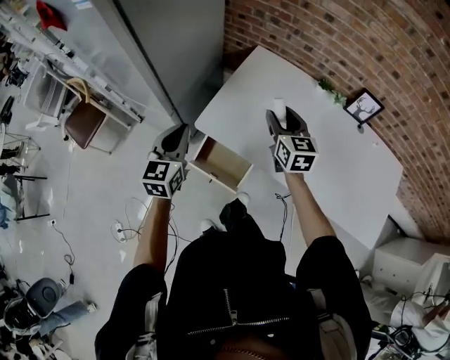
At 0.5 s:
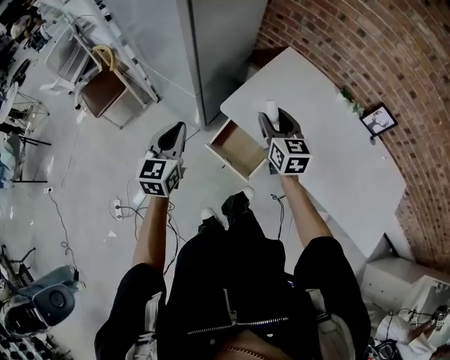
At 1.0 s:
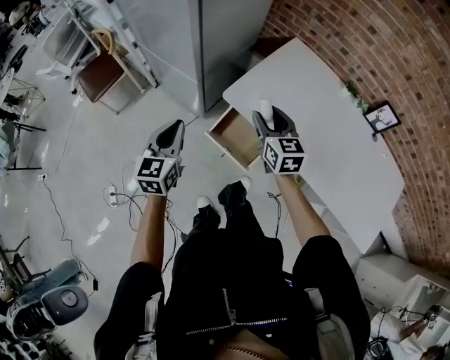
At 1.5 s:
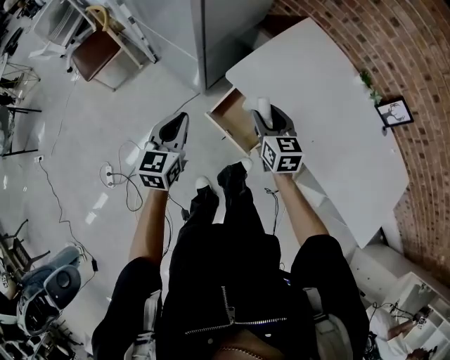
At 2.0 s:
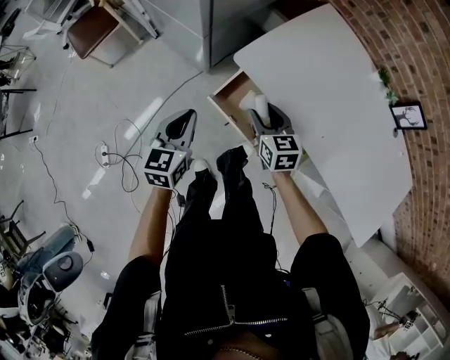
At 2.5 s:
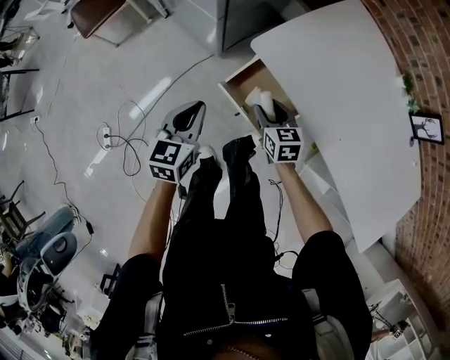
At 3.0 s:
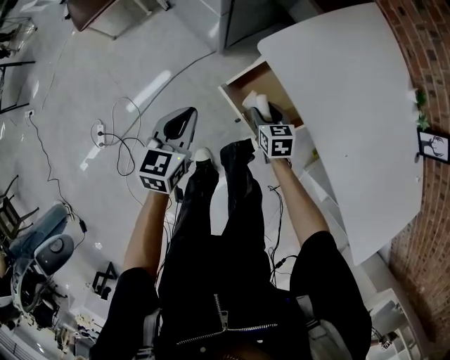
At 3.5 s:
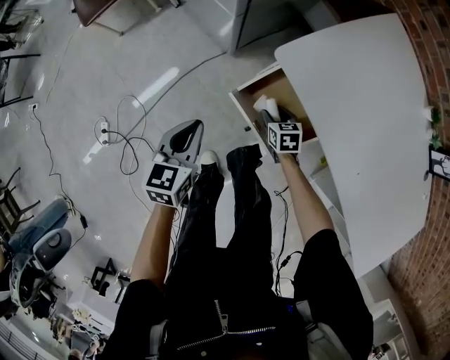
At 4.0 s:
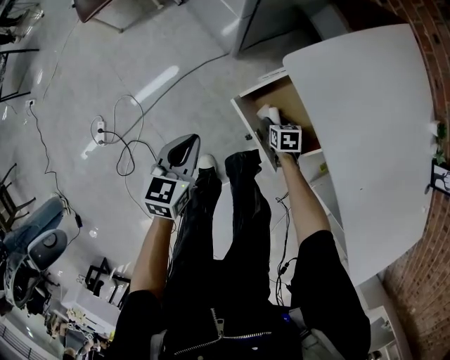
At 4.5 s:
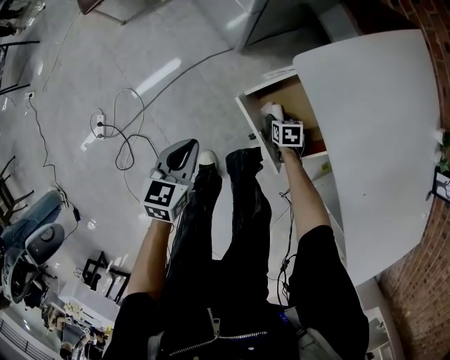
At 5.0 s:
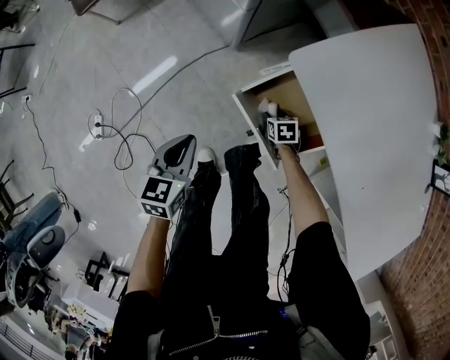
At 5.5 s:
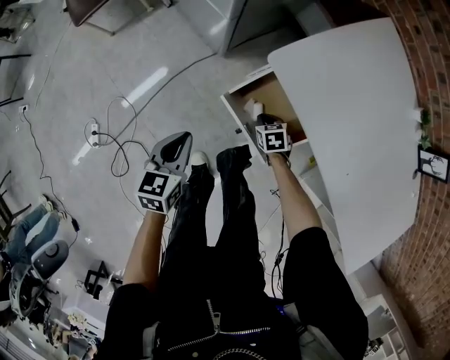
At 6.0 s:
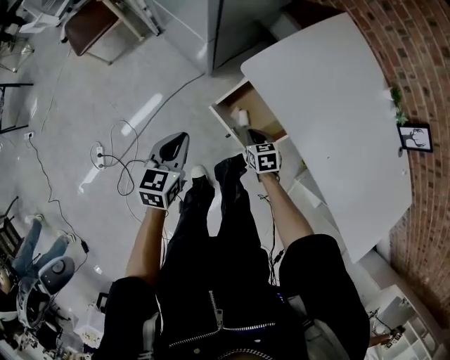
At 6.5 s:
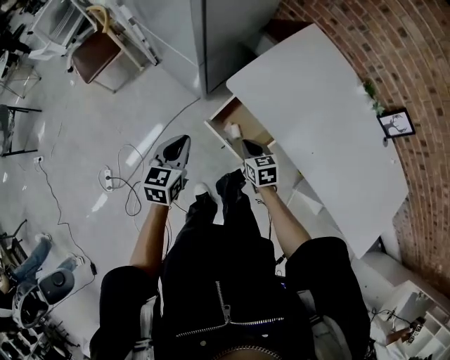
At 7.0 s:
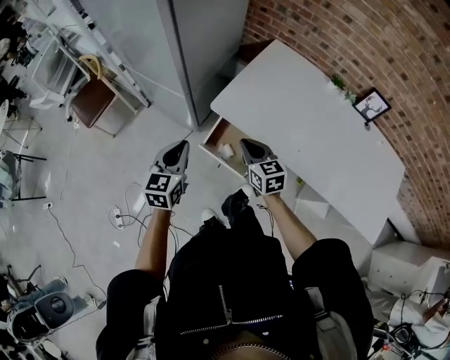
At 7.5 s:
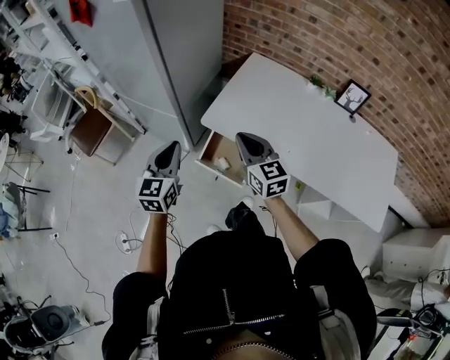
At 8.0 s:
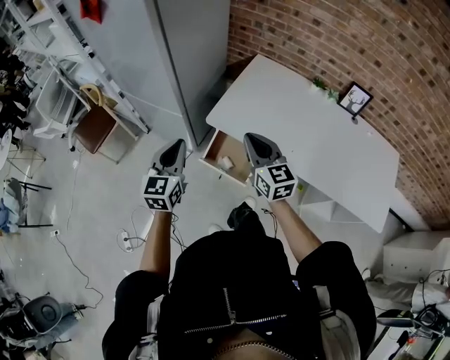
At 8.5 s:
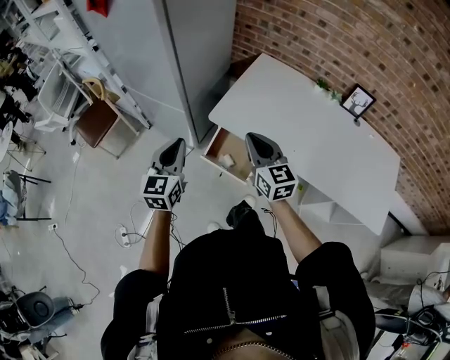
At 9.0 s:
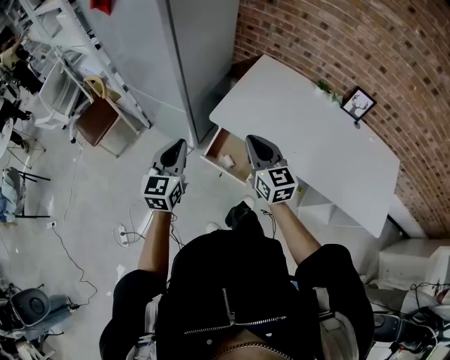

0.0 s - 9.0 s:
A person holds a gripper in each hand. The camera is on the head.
0.0 s - 2.0 s: The right gripper travels downward, to the left and backward by about 30 cm, and turns by about 30 degrees. Meanwhile the left gripper is displaced downward, backward and to the left by some 20 cm.
2.0 s - 4.5 s: The right gripper is displaced downward by about 40 cm, and tilts its fingers approximately 40 degrees downward; the left gripper is displaced downward by approximately 20 cm, and turns by roughly 20 degrees.
4.5 s - 7.0 s: The right gripper is displaced upward by roughly 50 cm, tips its fingers upward by about 40 degrees, and closes up. Meanwhile the left gripper is displaced upward by about 30 cm, and changes its angle by about 30 degrees.
7.0 s - 9.0 s: The right gripper travels upward by about 15 cm, while the left gripper is displaced upward by approximately 10 cm.

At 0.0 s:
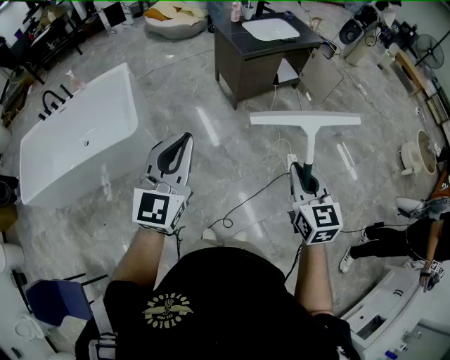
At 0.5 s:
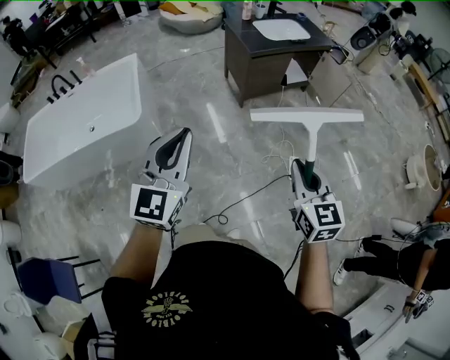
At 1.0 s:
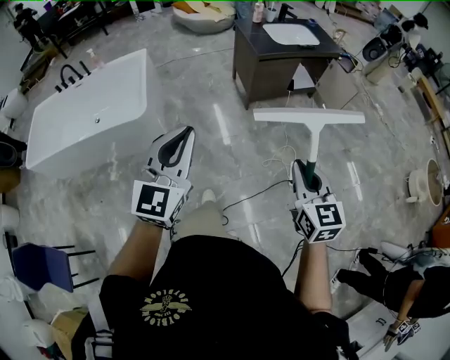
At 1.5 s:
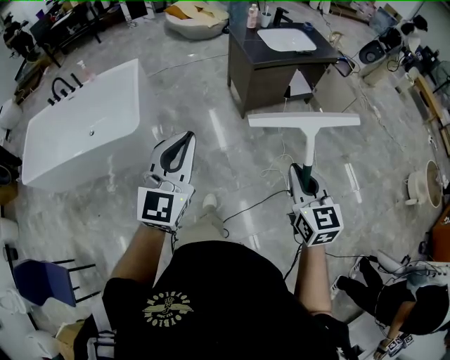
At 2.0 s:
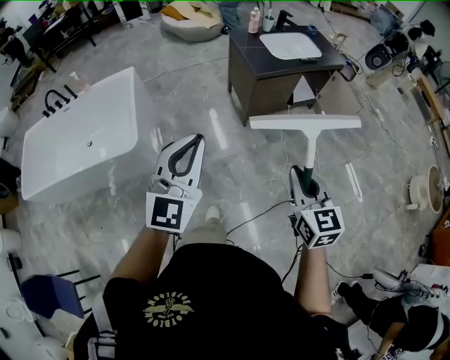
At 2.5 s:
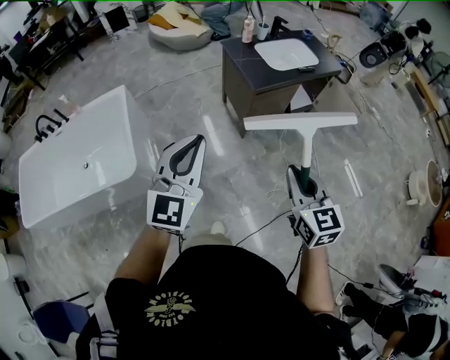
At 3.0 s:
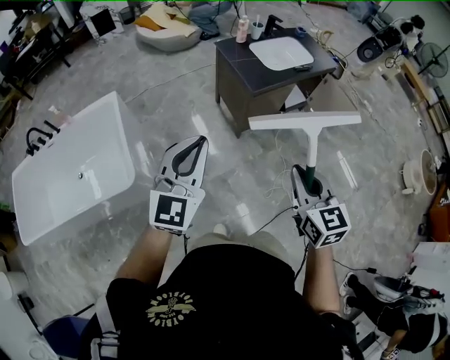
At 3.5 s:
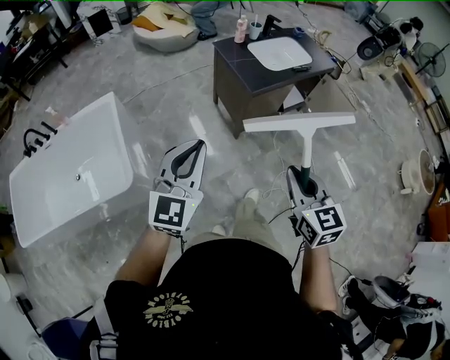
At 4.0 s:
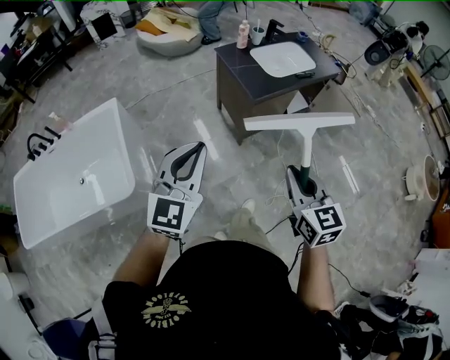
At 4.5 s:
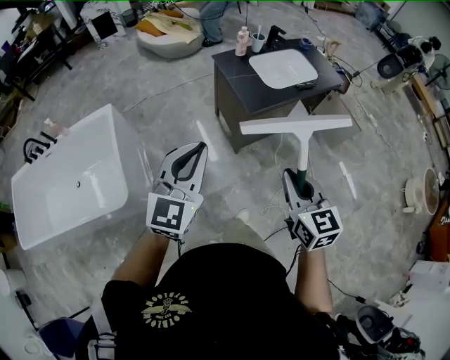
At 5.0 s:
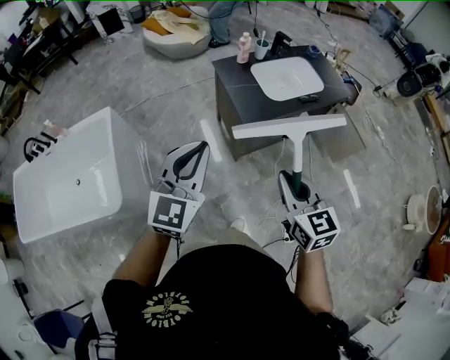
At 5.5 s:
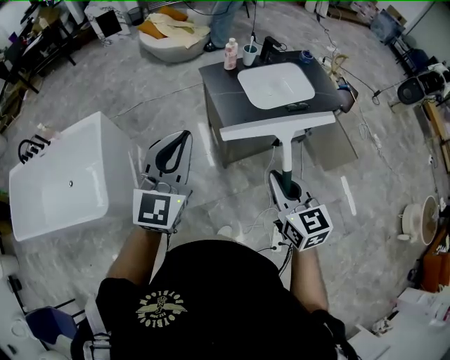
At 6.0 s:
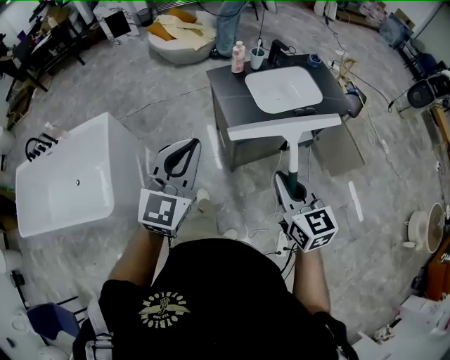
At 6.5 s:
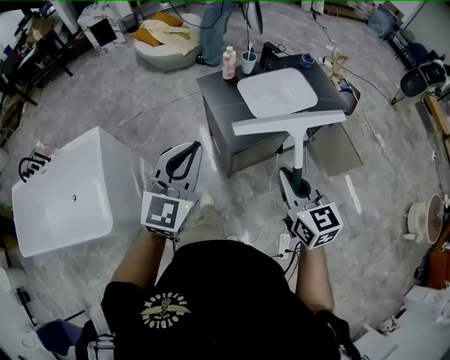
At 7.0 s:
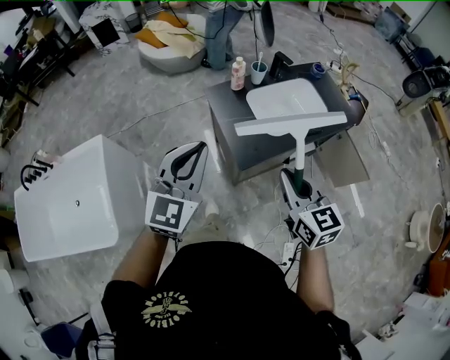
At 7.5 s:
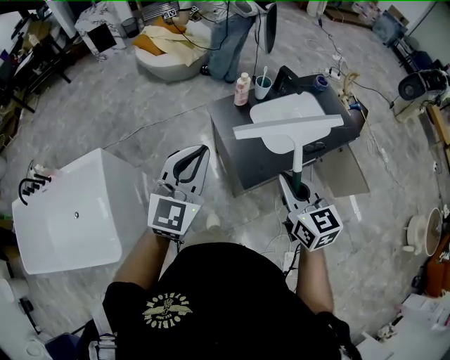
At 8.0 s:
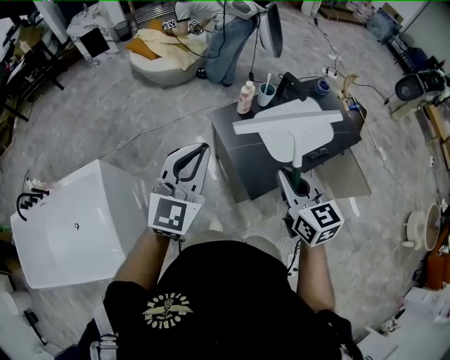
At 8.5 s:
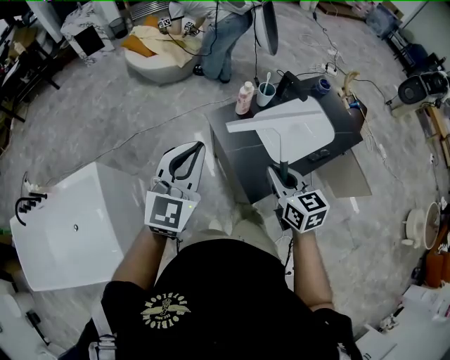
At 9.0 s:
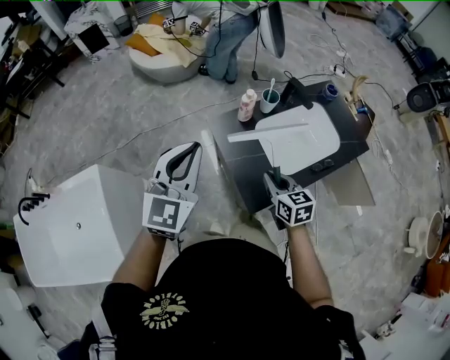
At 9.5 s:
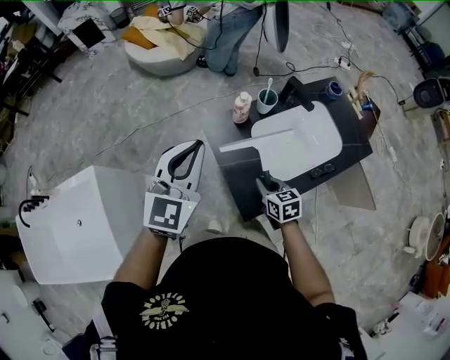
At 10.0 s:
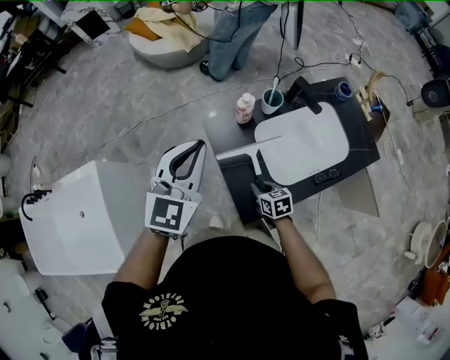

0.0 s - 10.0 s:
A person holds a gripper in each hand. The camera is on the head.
0.0 s - 2.0 s: The grippers both shift forward by roughly 20 cm.
2.0 s - 4.0 s: The left gripper heads forward, covering roughly 20 cm, while the right gripper heads forward and to the left, covering roughly 20 cm.
4.0 s - 6.0 s: The two grippers go about 30 cm forward and to the right.
6.0 s - 8.0 s: Both grippers move forward, approximately 30 cm.
8.0 s - 10.0 s: The right gripper moves downward, some 35 cm, and swivels approximately 40 degrees, while the left gripper heads forward and downward, covering some 20 cm.

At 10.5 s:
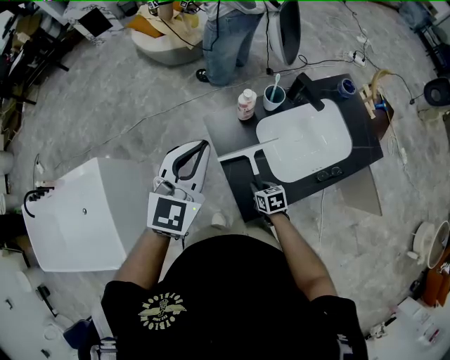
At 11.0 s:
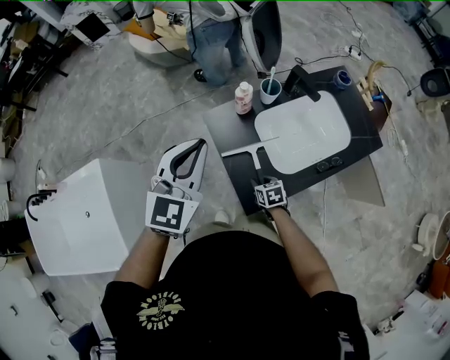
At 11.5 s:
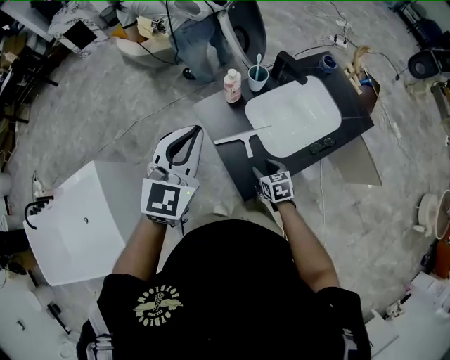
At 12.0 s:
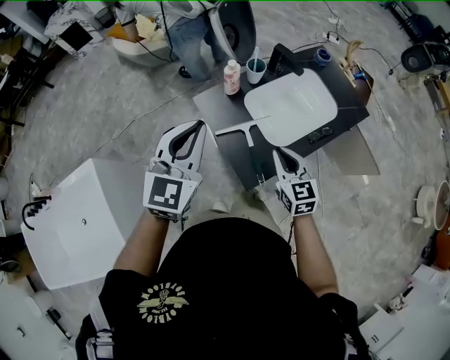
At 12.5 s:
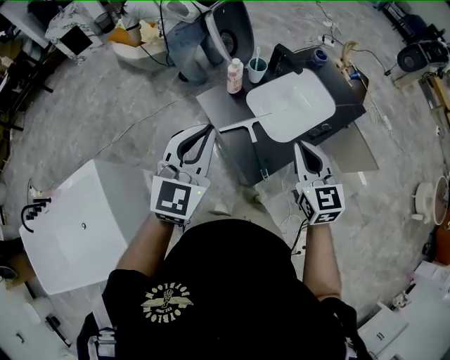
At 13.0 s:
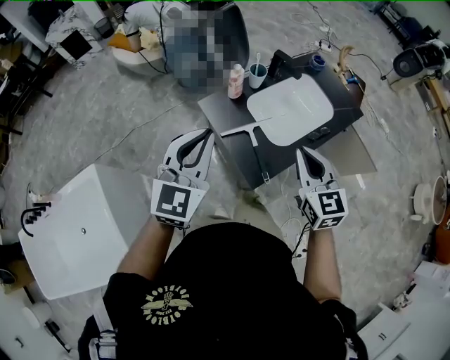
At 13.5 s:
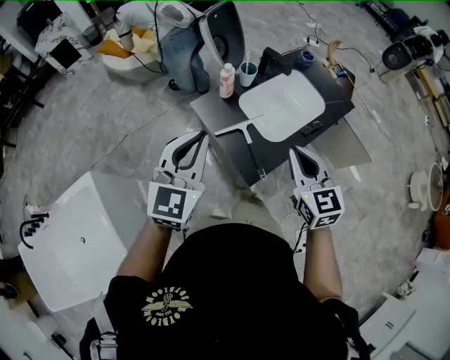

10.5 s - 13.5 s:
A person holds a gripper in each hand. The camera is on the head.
10.5 s - 12.0 s: The left gripper goes about 10 cm backward; the right gripper travels upward by roughly 25 cm, turns by approximately 40 degrees, and opens and closes again.
12.0 s - 13.5 s: The left gripper travels backward by some 5 cm. Meanwhile the right gripper shifts roughly 15 cm upward and backward.

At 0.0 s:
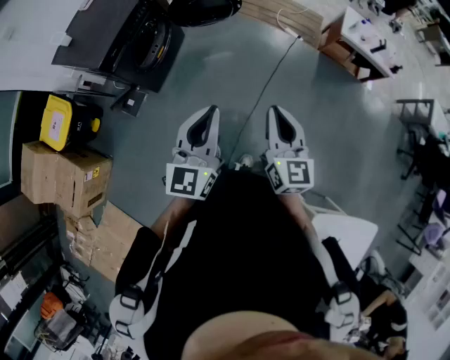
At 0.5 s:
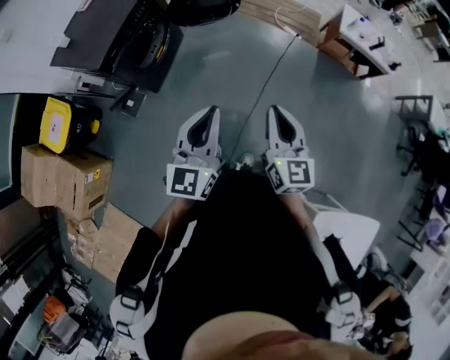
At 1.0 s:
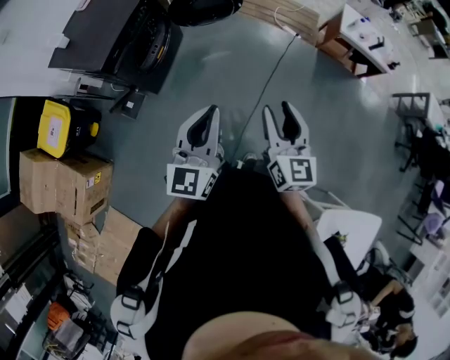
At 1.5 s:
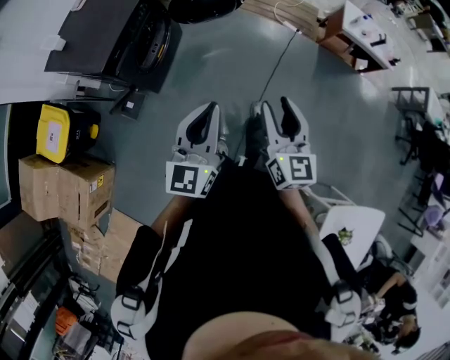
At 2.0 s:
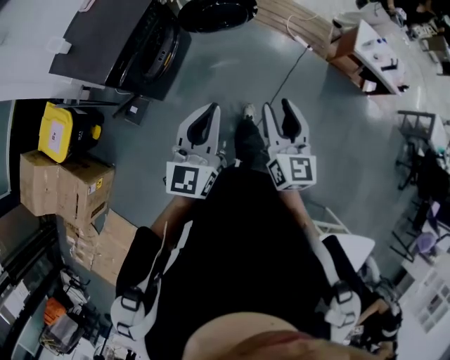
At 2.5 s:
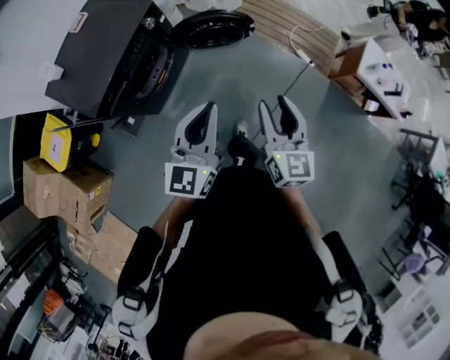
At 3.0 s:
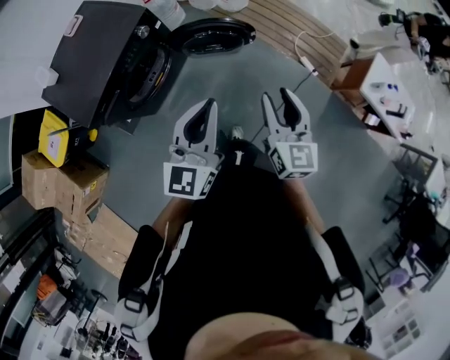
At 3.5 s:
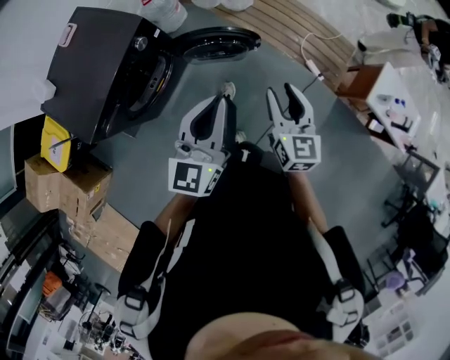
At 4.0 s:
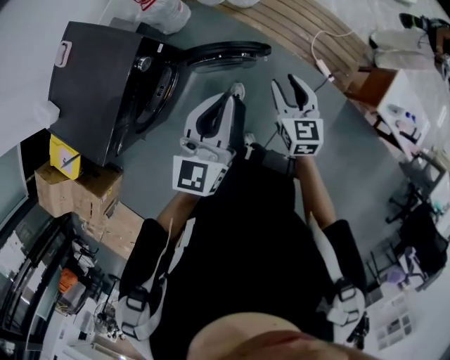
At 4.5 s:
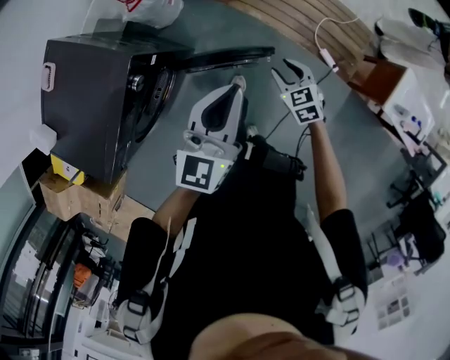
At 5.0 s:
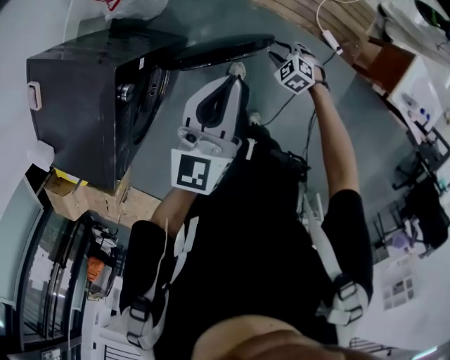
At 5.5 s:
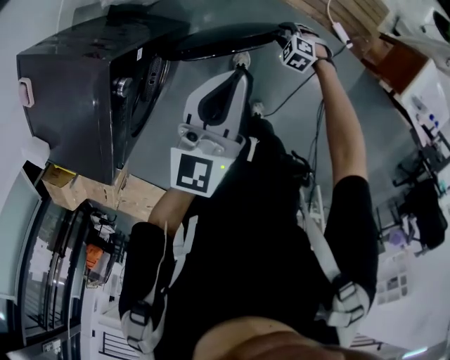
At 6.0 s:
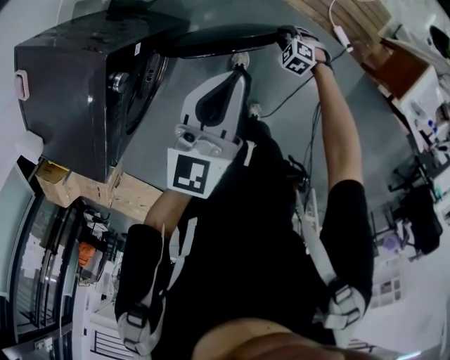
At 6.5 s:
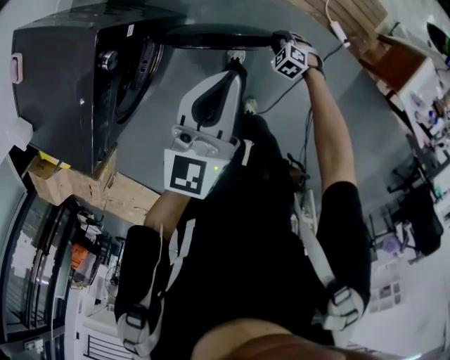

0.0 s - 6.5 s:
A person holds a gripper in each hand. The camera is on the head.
0.0 s - 2.0 s: Both grippers move forward and to the left, some 15 cm. The right gripper opens up.
2.0 s - 4.5 s: The two grippers travel together, forward, about 70 cm. The right gripper is displaced downward by approximately 30 cm, and tilts its fingers about 40 degrees downward.
4.5 s - 6.5 s: The right gripper travels downward by about 25 cm, and swivels about 30 degrees; the left gripper moves downward, approximately 10 cm.
